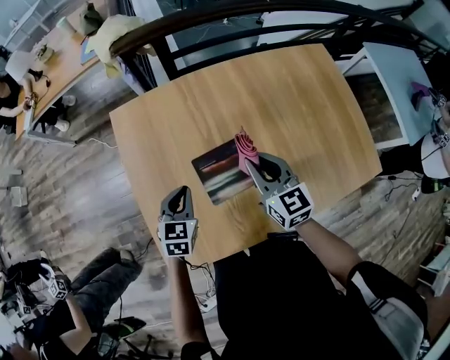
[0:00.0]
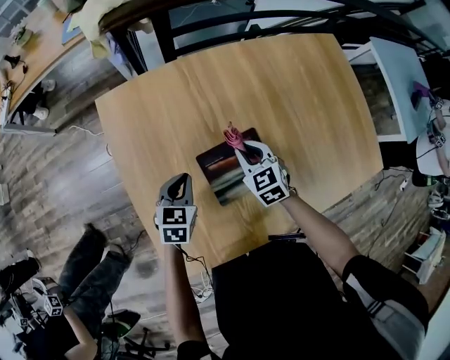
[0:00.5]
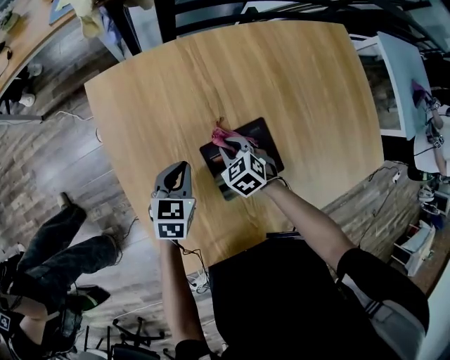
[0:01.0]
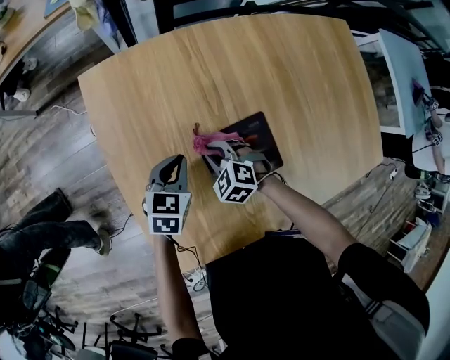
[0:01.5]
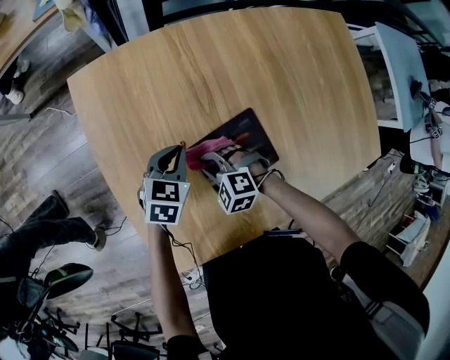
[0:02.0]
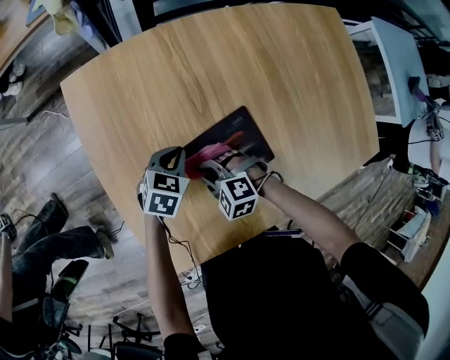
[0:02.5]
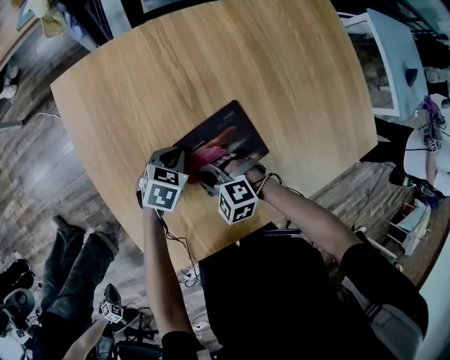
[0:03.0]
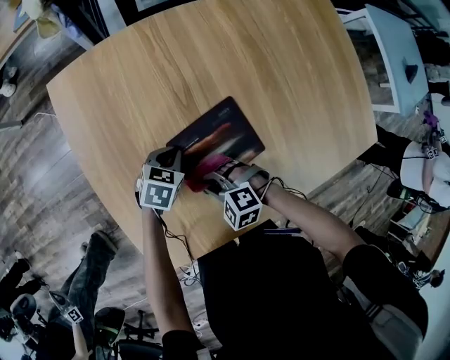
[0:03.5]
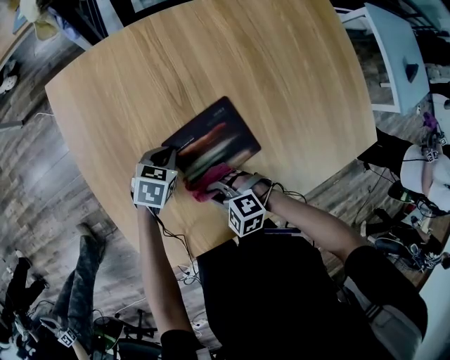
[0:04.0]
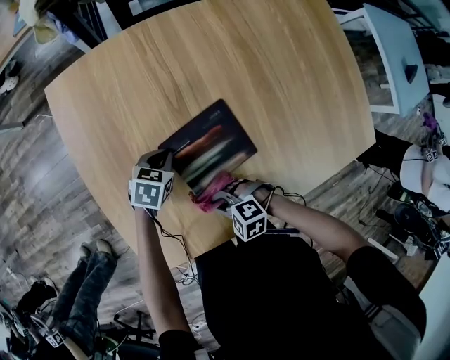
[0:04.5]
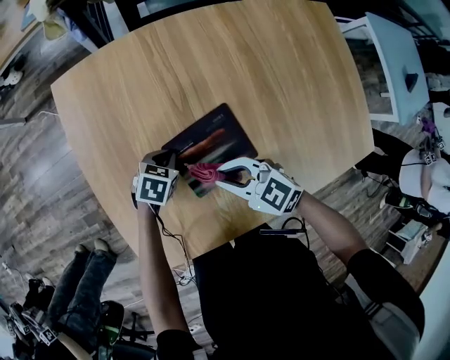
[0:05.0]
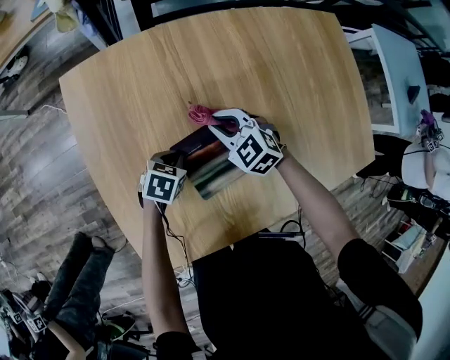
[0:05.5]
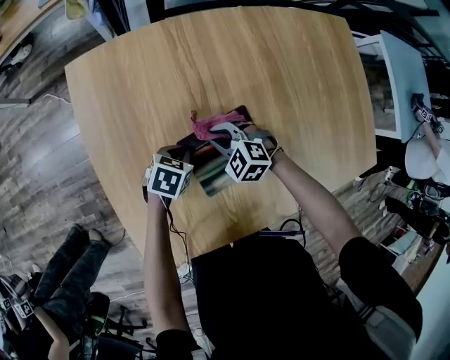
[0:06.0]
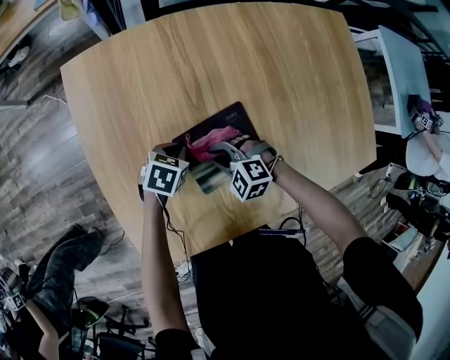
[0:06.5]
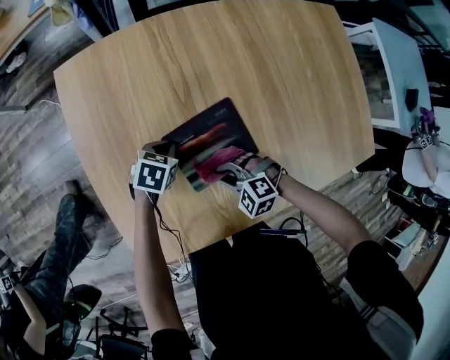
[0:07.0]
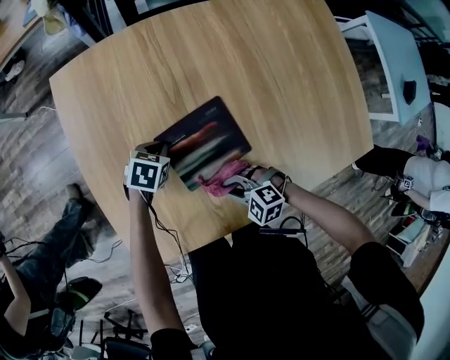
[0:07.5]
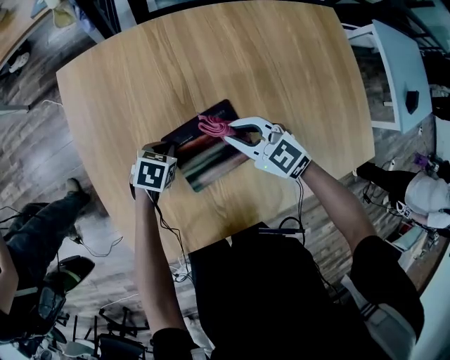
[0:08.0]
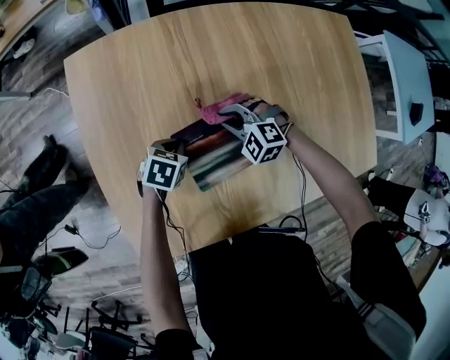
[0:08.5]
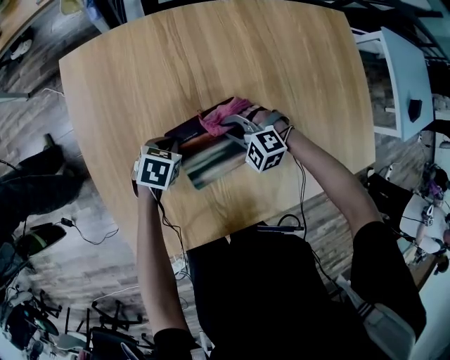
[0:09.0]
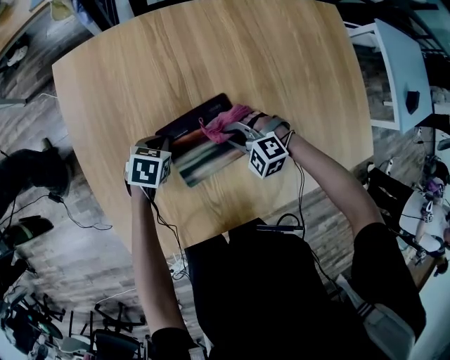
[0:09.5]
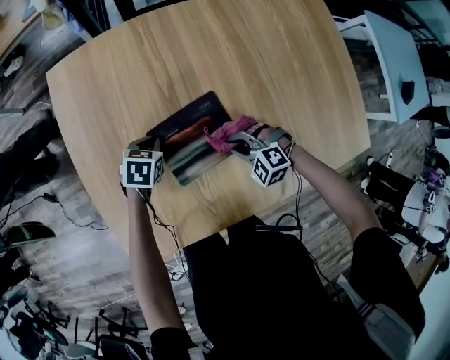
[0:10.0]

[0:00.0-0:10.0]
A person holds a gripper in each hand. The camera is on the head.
0:00.0 to 0:02.0: The left gripper travels downward and forward by some 15 cm. The right gripper travels downward and to the left by some 35 cm, and tips its fingers downward by some 40 degrees.
0:02.0 to 0:04.0: The left gripper shifts roughly 5 cm downward. The right gripper moves about 15 cm.
0:04.0 to 0:06.0: The right gripper reaches approximately 10 cm upward, then returns.
0:06.0 to 0:08.0: The right gripper is displaced upward by some 10 cm, and rotates roughly 30 degrees.
0:08.0 to 0:10.0: The right gripper is displaced downward, backward and to the right by about 15 cm, and rotates about 40 degrees.

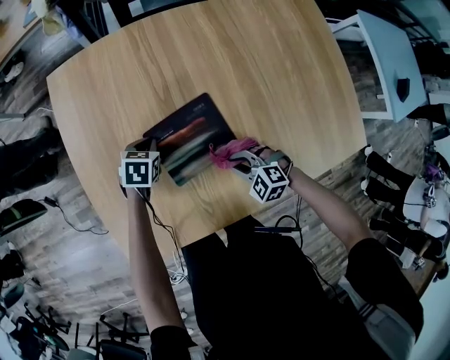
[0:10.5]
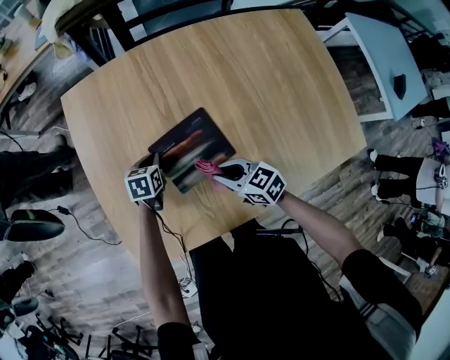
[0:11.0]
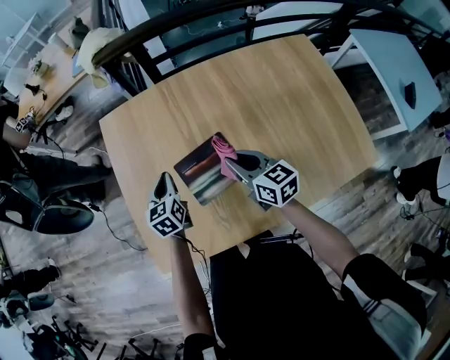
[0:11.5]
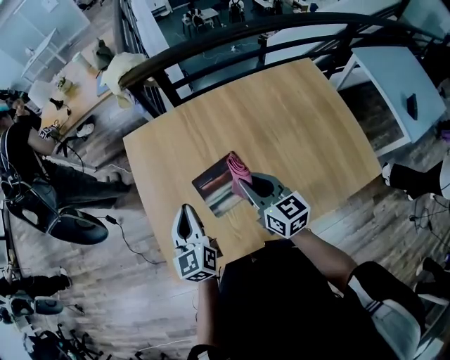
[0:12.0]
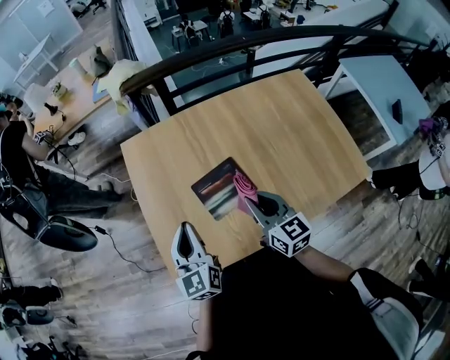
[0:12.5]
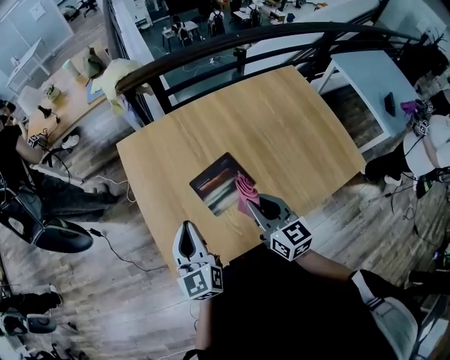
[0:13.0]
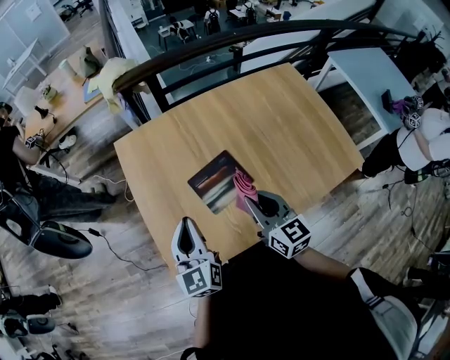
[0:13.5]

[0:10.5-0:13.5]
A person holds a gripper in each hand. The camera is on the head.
0:10.5 to 0:12.0: Both grippers travel together upward, some 30 cm. The left gripper tilts its fingers some 50 degrees upward. The right gripper angles its fingers upward, by roughly 50 degrees.
0:12.0 to 0:13.5: The right gripper heads backward, covering approximately 10 cm. Meanwhile the left gripper moves roughly 5 cm.

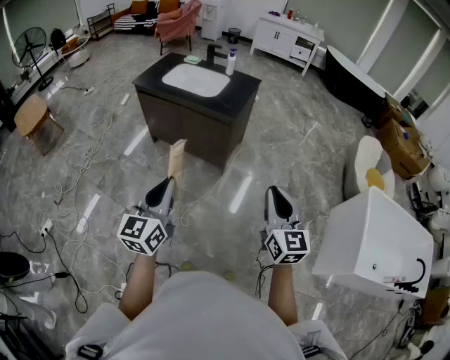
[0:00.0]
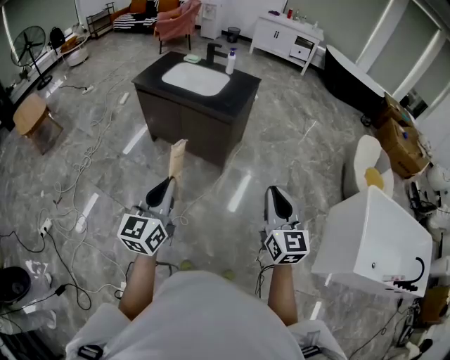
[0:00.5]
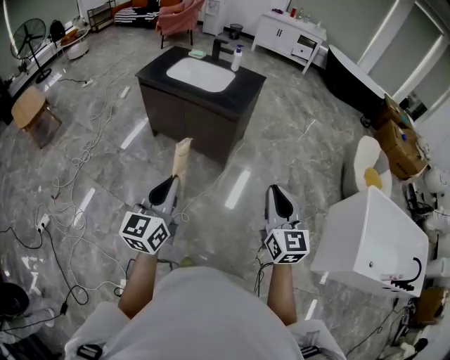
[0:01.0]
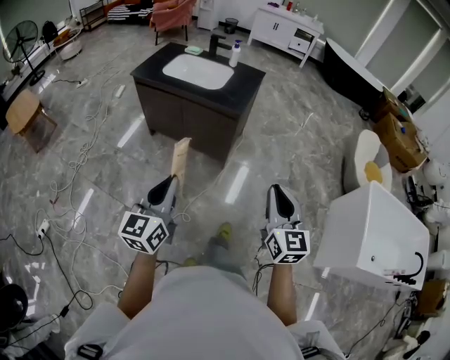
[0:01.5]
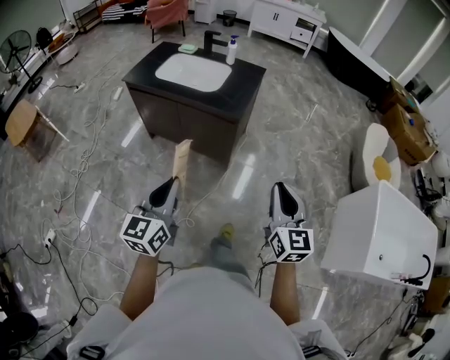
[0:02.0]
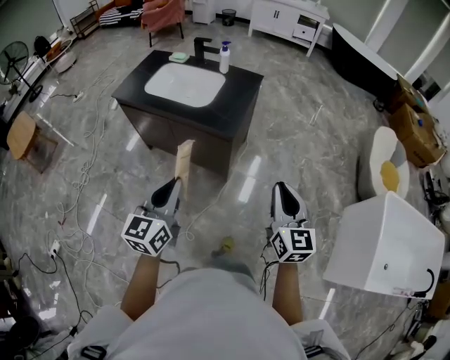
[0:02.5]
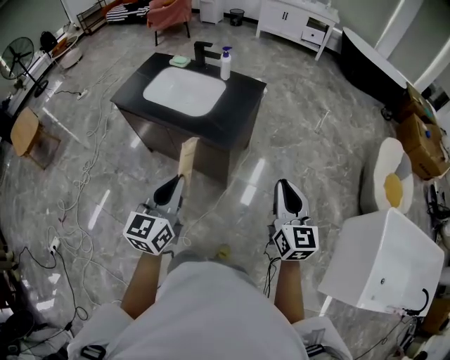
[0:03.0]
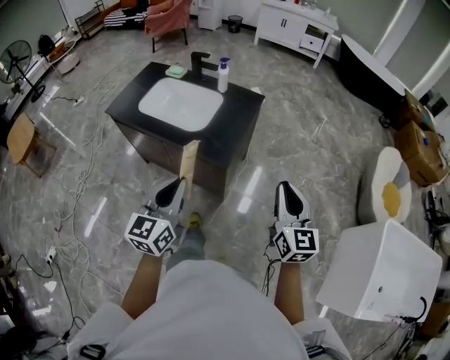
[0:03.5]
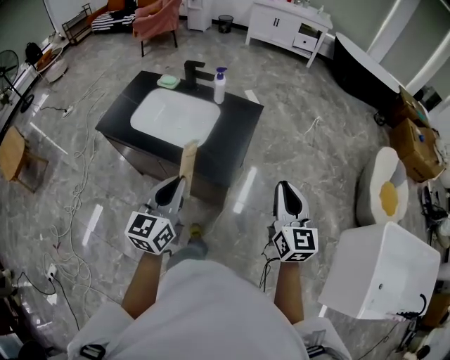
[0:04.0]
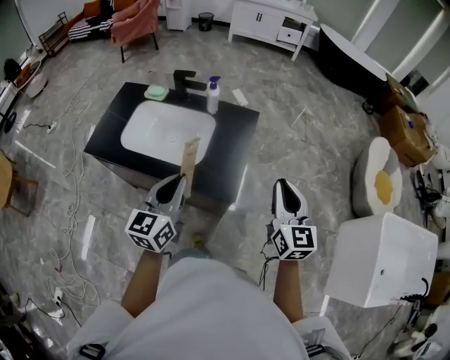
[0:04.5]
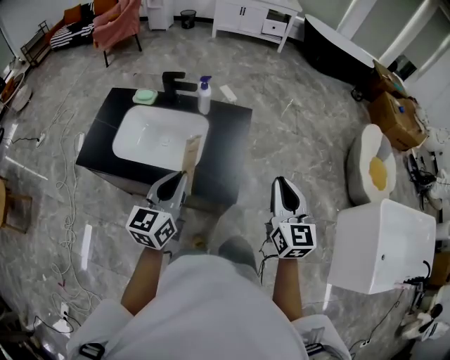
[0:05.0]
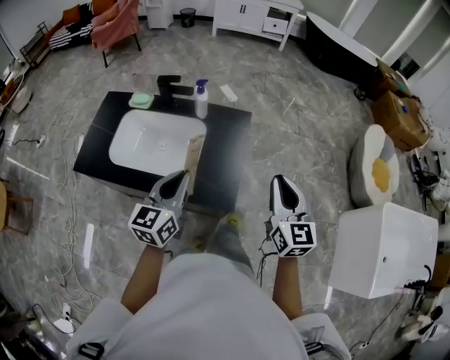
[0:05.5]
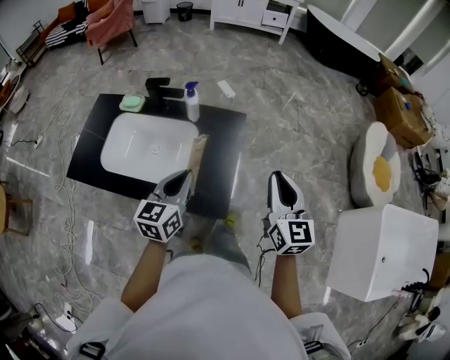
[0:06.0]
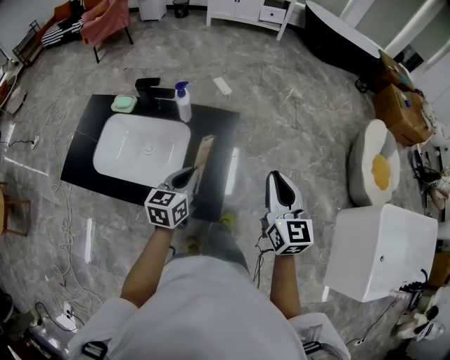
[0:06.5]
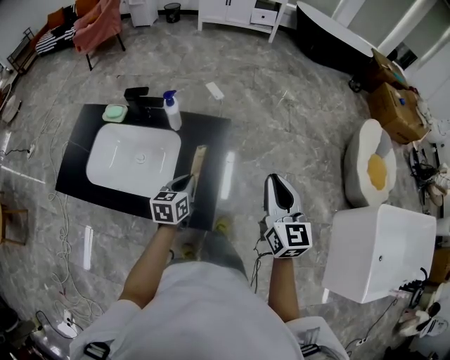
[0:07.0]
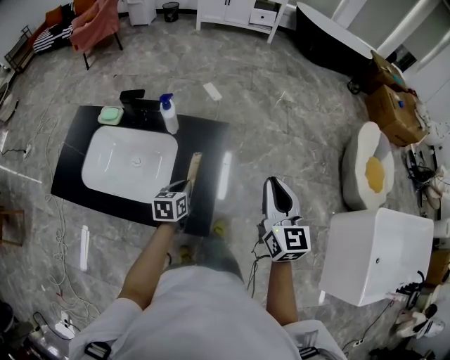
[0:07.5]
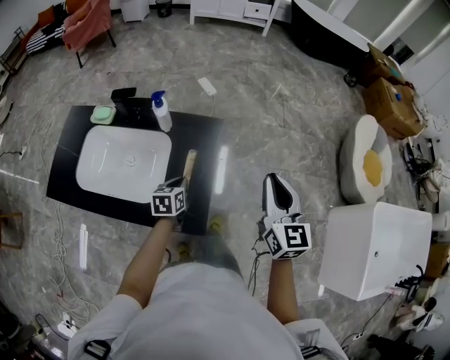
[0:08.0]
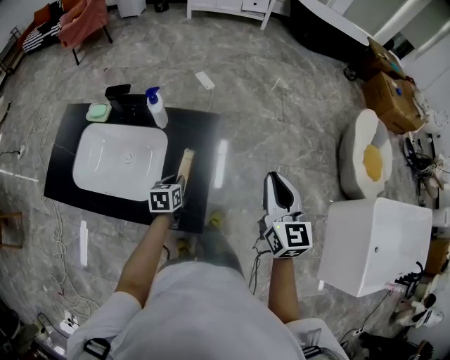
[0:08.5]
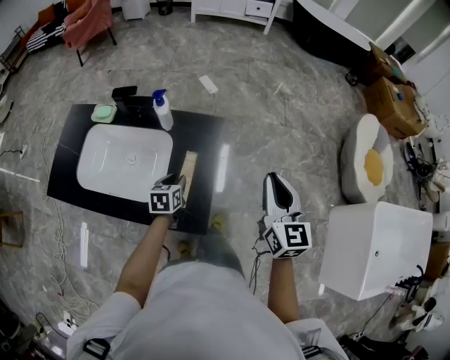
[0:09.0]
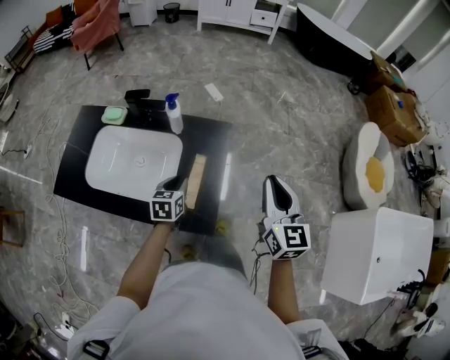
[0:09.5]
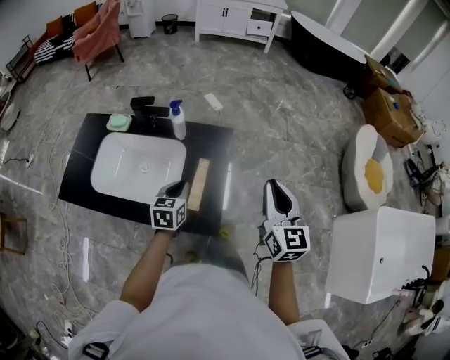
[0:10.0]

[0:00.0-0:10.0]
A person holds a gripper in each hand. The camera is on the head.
0:00.0 to 0:02.0: Both grippers move forward, roughly 15 cm.
0:02.0 to 0:04.0: Both grippers are carried forward, approximately 40 cm.
0:04.0 to 0:06.0: The two grippers go some 25 cm forward.
0:06.0 to 0:08.0: The left gripper moves downward and forward, roughly 25 cm, and turns by approximately 30 degrees; the right gripper moves forward and to the right, approximately 10 cm.
0:08.0 to 0:10.0: The right gripper ends up some 5 cm from where it was. Meanwhile the left gripper moves upward, some 10 cm, and opens, then closes once more.

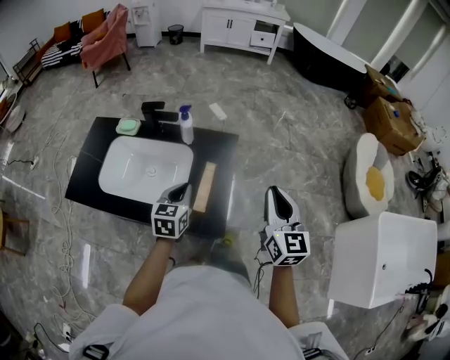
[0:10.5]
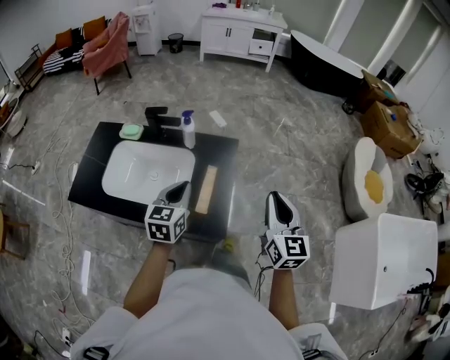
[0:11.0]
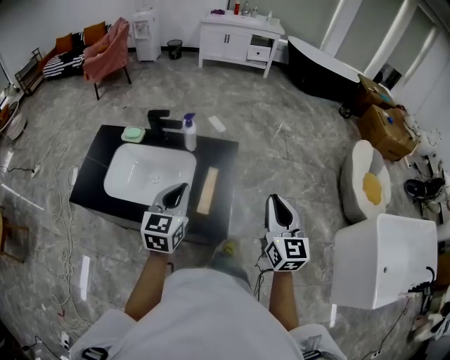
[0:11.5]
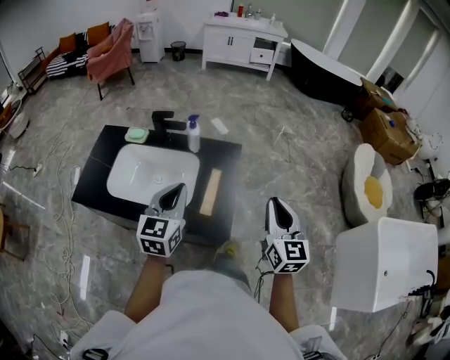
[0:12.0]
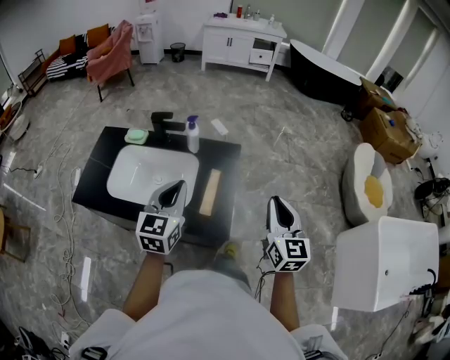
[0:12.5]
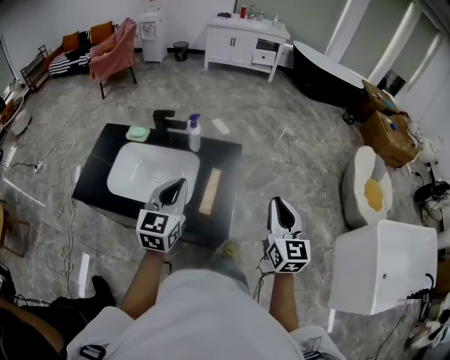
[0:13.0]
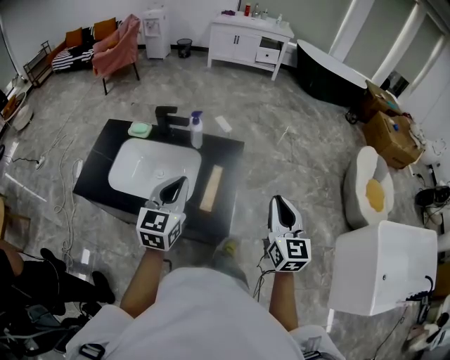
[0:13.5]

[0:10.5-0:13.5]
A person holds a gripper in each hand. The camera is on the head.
0:10.5 to 0:12.0: The left gripper shifts some 15 cm upward and backward; the right gripper heads backward, covering approximately 5 cm.
0:12.0 to 0:13.5: Both grippers stay about where they are.
